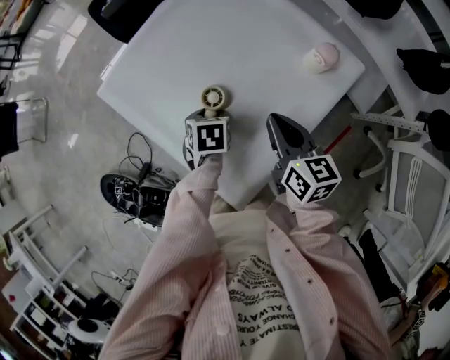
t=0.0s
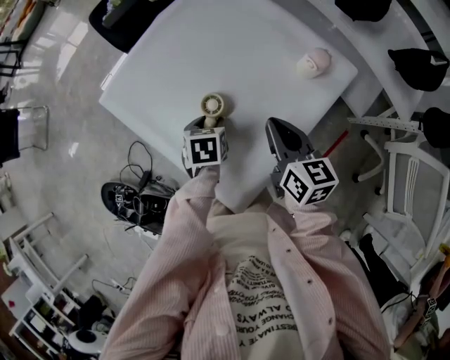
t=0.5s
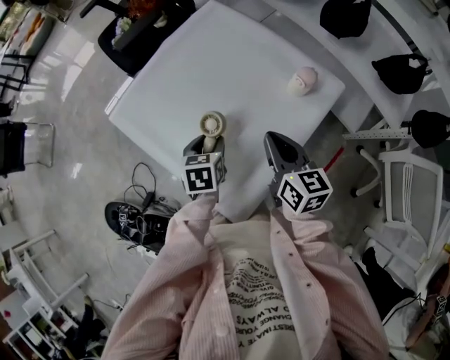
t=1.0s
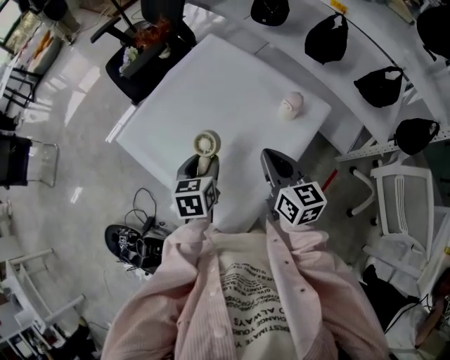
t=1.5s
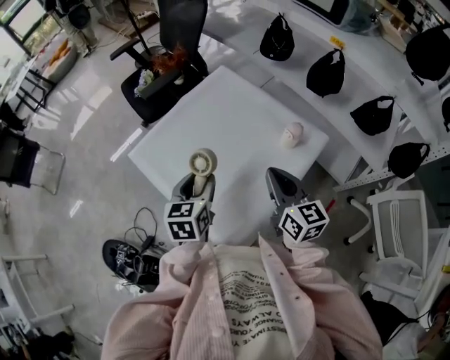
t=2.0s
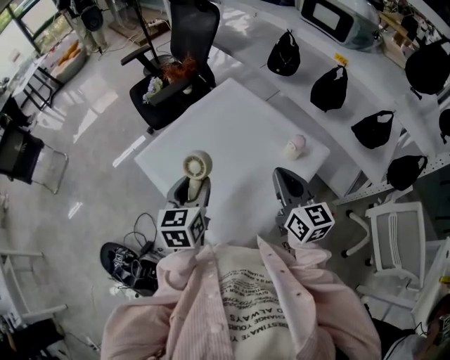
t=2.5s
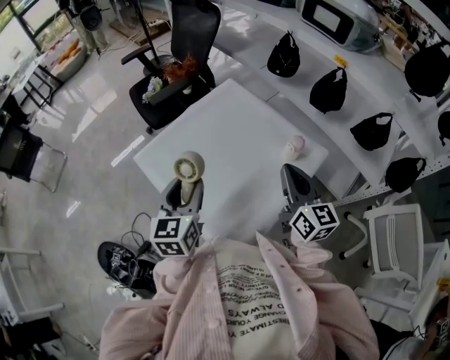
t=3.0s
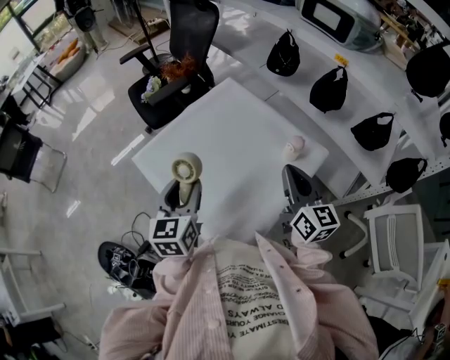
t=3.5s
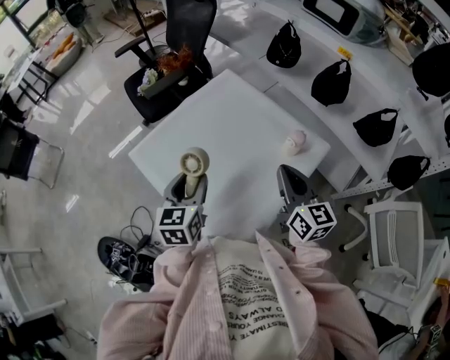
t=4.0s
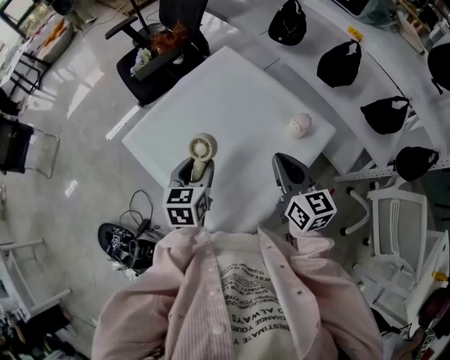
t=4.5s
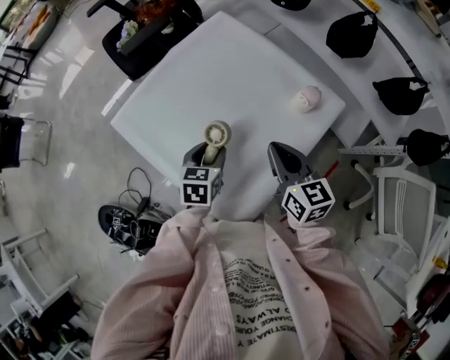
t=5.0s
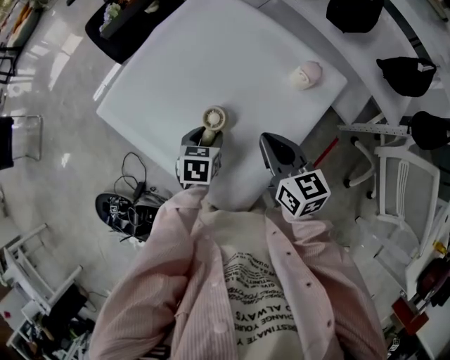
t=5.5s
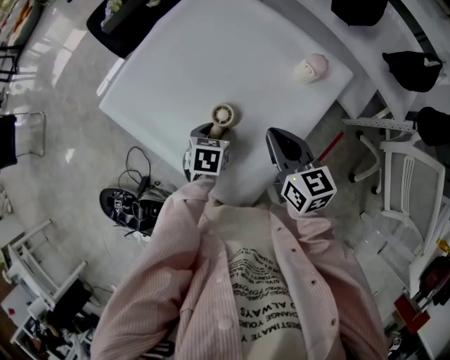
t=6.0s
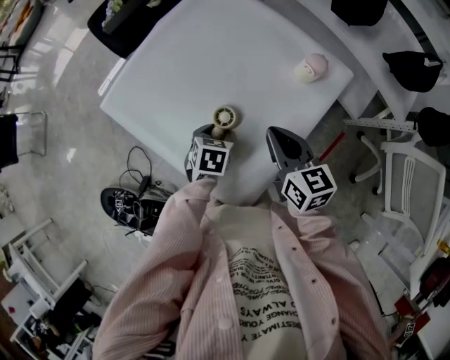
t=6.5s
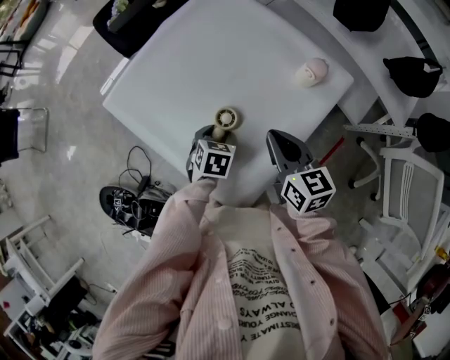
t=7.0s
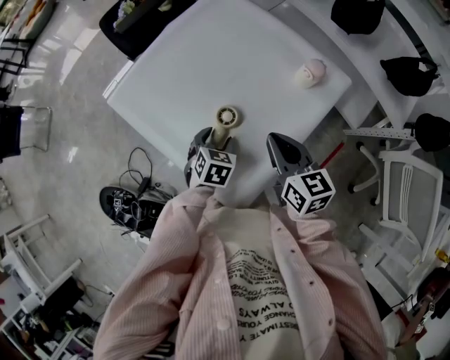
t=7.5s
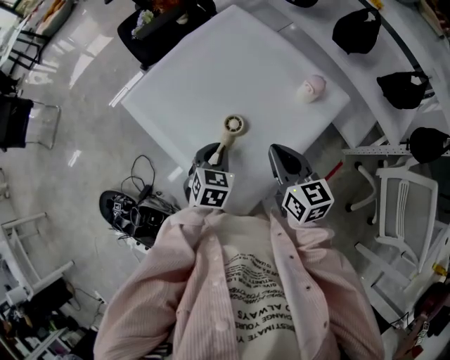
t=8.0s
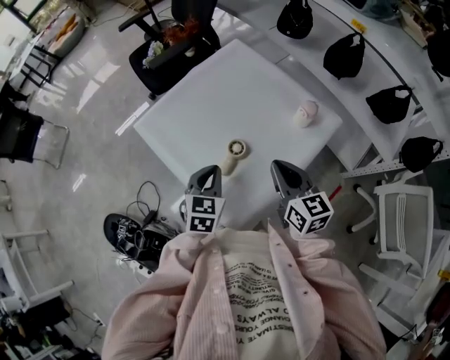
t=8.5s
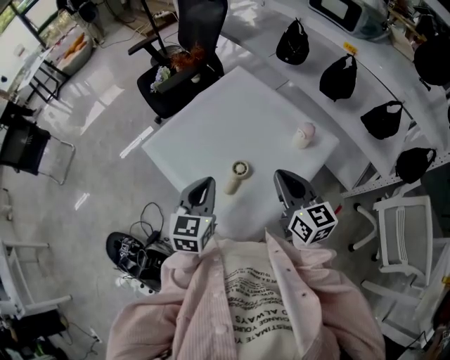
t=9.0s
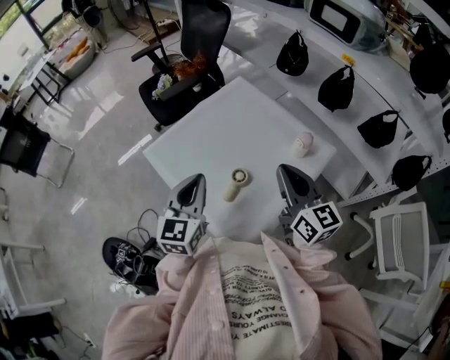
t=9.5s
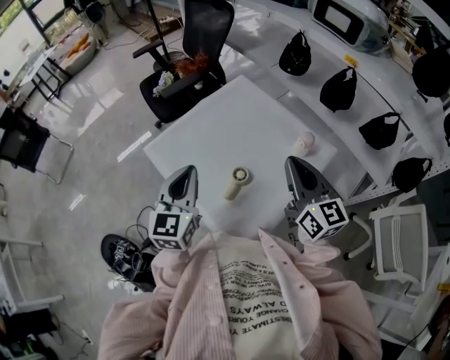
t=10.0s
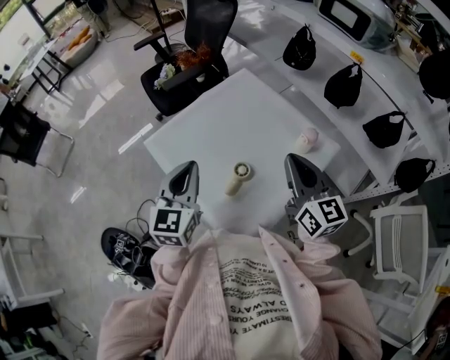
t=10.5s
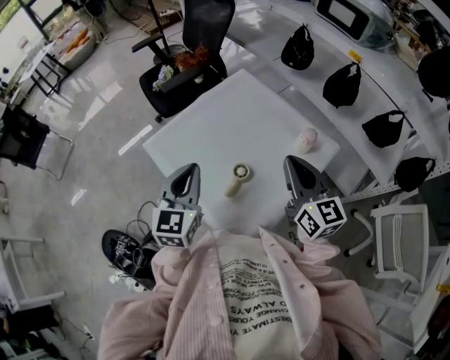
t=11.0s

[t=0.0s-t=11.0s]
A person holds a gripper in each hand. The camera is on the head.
t=0.0s to t=2.0s: The right gripper moves upward, about 15 cm. The left gripper travels upward by about 20 cm, and tips its fingers upward by roughly 40 degrees.
t=2.0s to t=3.5s: The right gripper changes place by some 5 cm, while the left gripper travels upward by roughly 5 cm.
t=3.5s to t=5.5s: The right gripper moves downward, some 15 cm, and rotates some 20 degrees, while the left gripper heads downward, covering roughly 25 cm, and points its fingers some 40 degrees further downward.
t=5.5s to t=7.5s: The grippers stay close to where they were, moving slightly.
t=7.5s to t=9.0s: The left gripper is displaced upward by about 25 cm, points its fingers roughly 40 degrees further upward, and closes its fingers. The right gripper travels upward by roughly 10 cm.
t=9.0s to t=11.0s: The grippers both shift upward by approximately 5 cm.

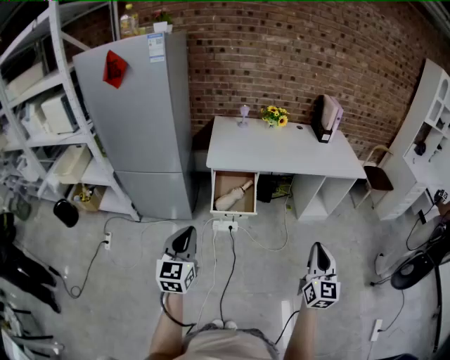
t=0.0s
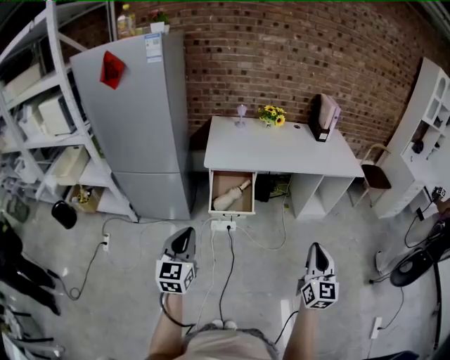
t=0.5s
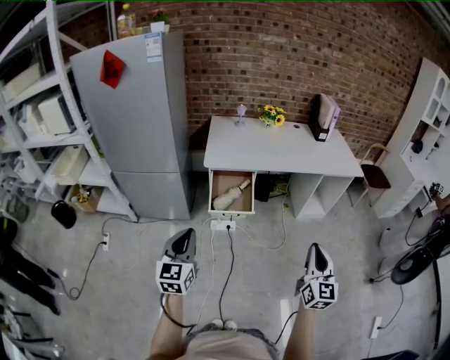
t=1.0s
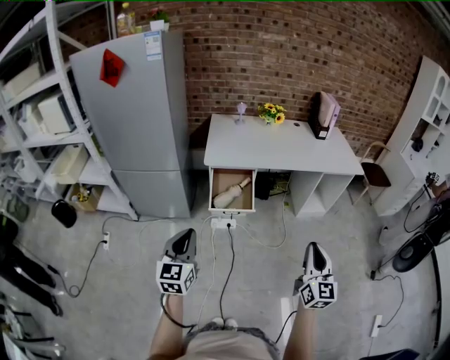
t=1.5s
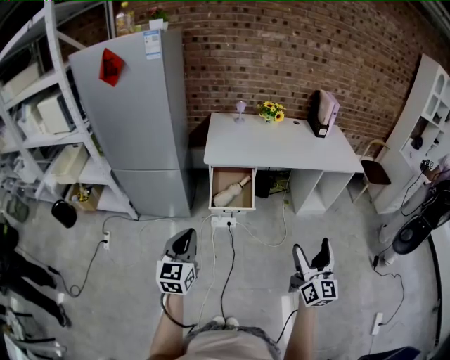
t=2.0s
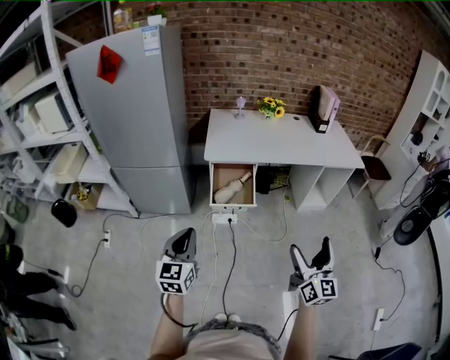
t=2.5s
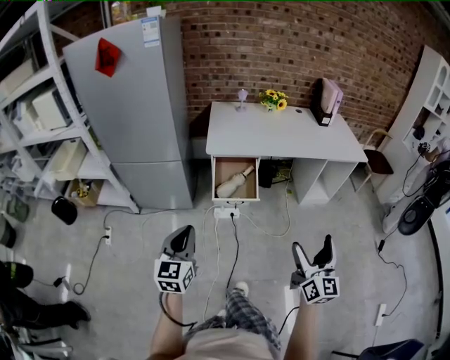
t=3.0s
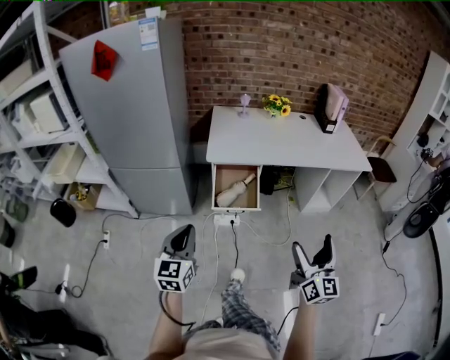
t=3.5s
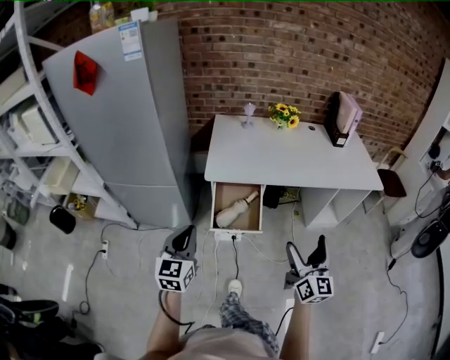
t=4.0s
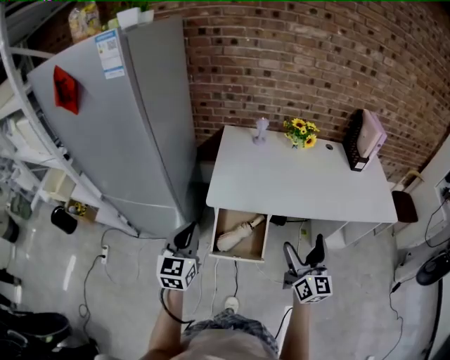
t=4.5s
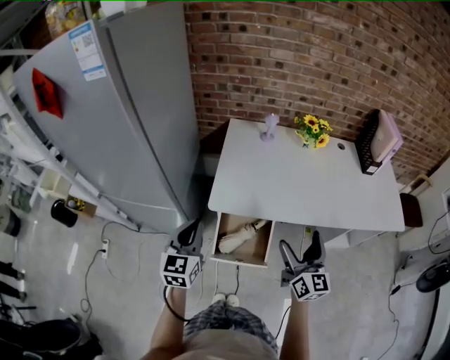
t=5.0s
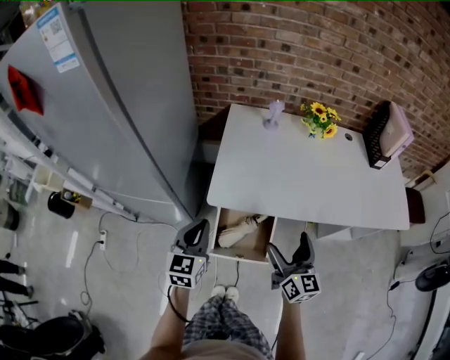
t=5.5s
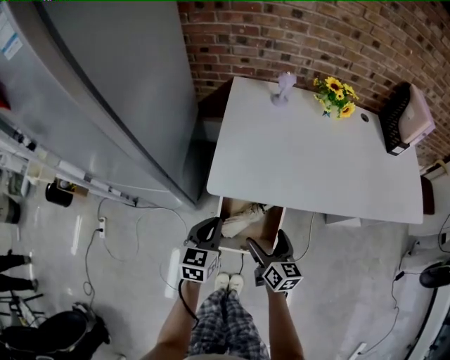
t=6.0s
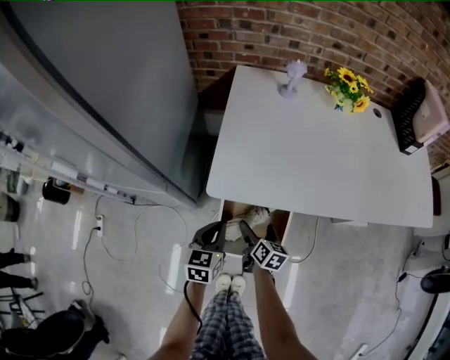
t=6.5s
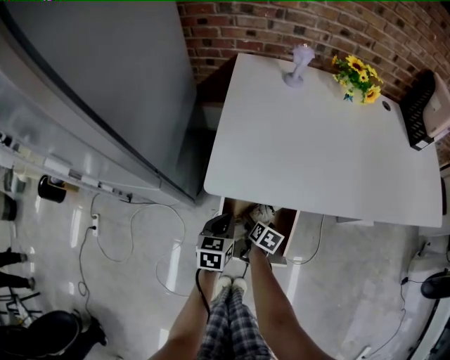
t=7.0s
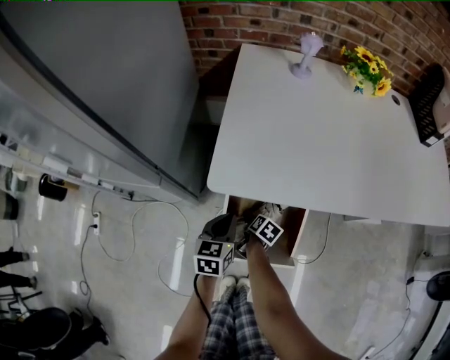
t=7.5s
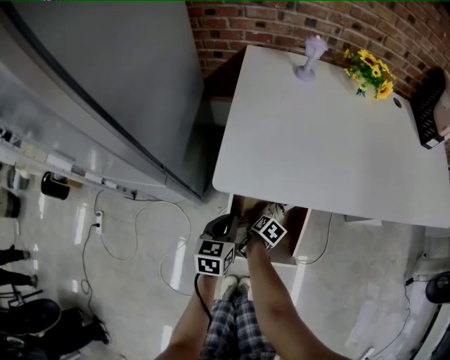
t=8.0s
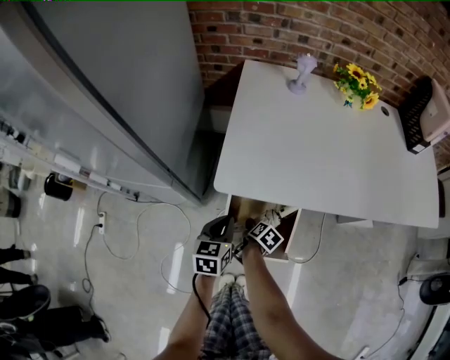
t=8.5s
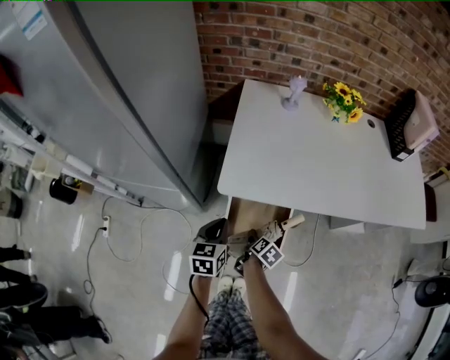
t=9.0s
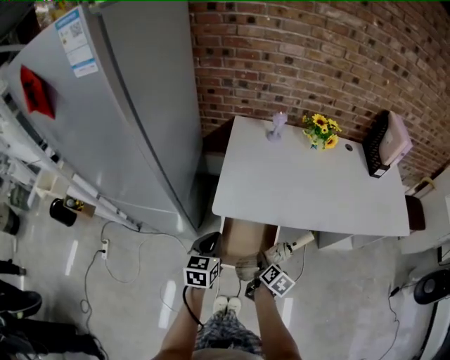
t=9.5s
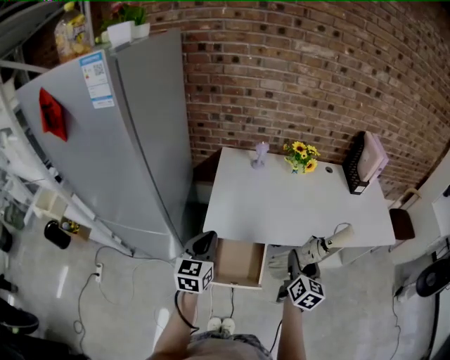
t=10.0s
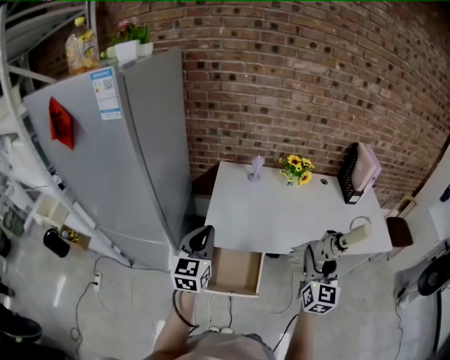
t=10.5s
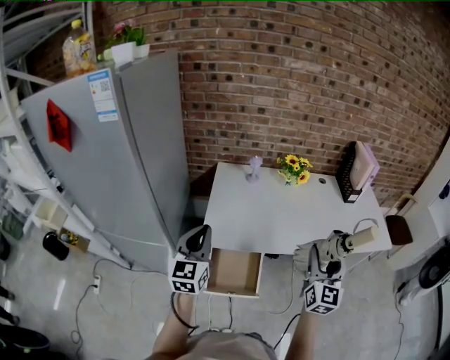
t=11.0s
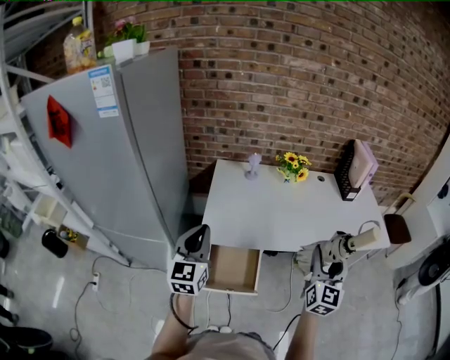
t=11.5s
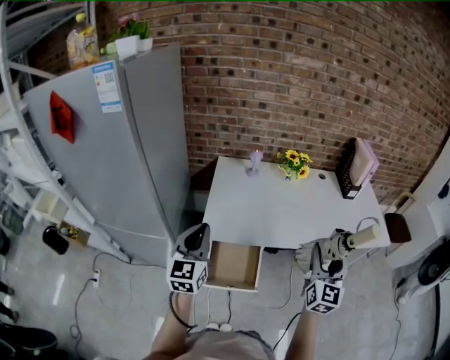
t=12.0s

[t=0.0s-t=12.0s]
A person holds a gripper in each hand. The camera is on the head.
t=0.0s to t=2.0s: The right gripper opens.
t=2.0s to t=4.0s: Both grippers move forward, some 25 cm.
t=4.0s to t=6.0s: The two grippers go roughly 40 cm forward and downward. The left gripper turns by about 20 degrees; the right gripper changes its angle by about 40 degrees.
t=6.0s to t=8.0s: The left gripper moves downward, roughly 20 cm. Meanwhile the right gripper is displaced downward by roughly 35 cm, tilts its fingers about 40 degrees downward, and closes its fingers.
t=8.0s to t=10.0s: Both grippers travel together upward, about 50 cm. The left gripper changes its angle by approximately 20 degrees. Meanwhile the right gripper points its fingers some 50 degrees further upward.
t=10.0s to t=12.0s: The right gripper travels upward and to the right by roughly 15 cm, and changes its angle by approximately 30 degrees. Meanwhile the left gripper heads upward, covering some 10 cm.

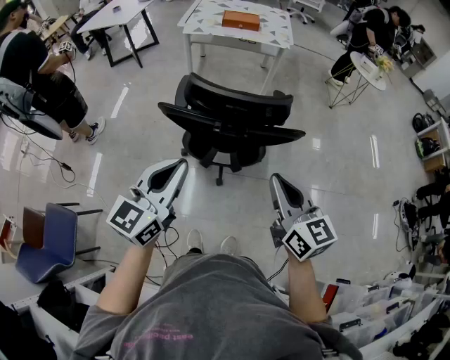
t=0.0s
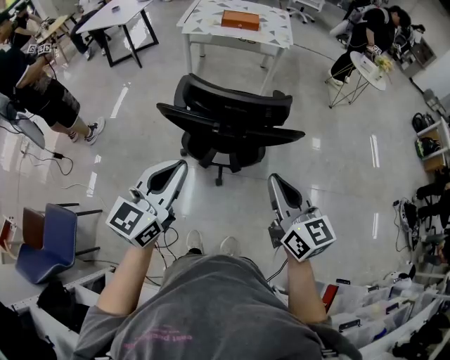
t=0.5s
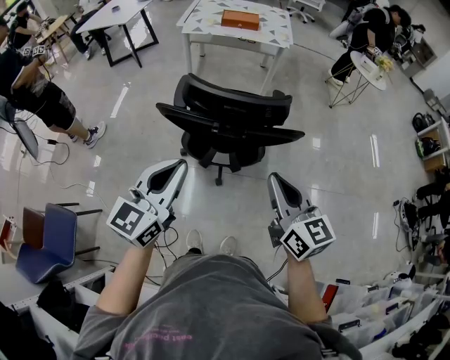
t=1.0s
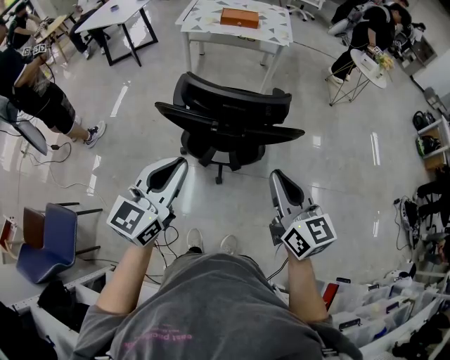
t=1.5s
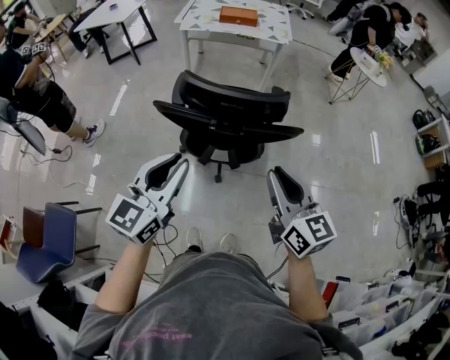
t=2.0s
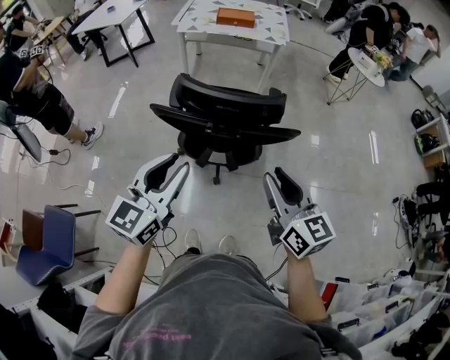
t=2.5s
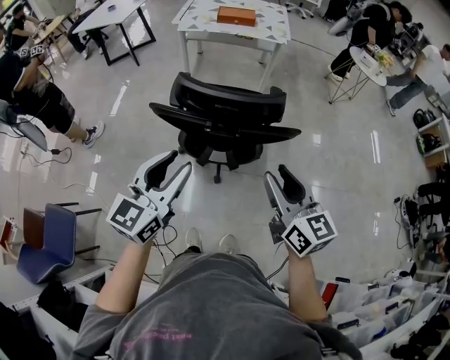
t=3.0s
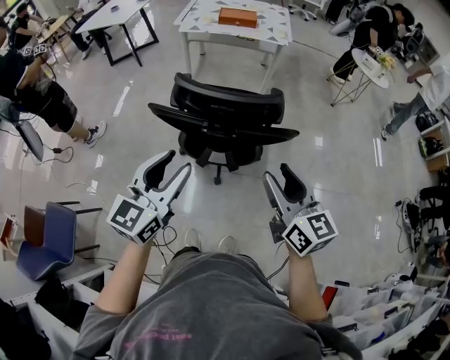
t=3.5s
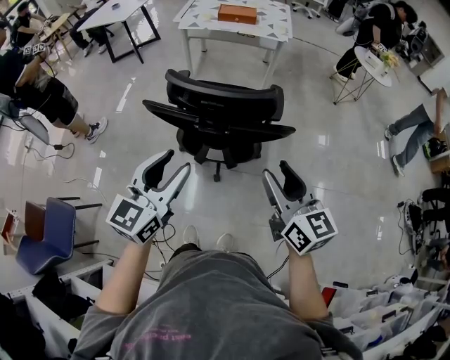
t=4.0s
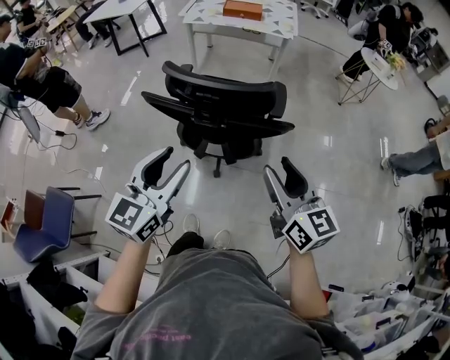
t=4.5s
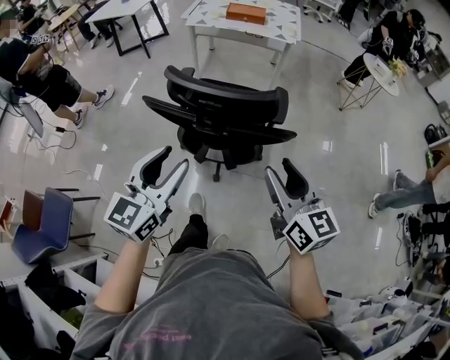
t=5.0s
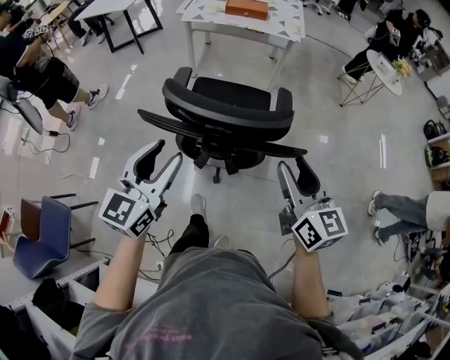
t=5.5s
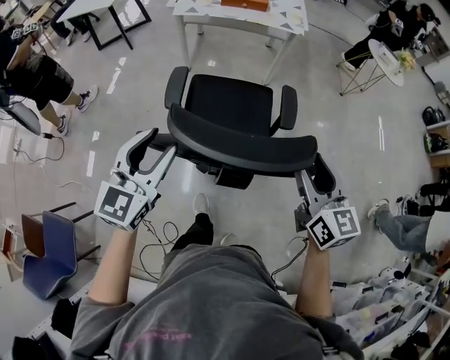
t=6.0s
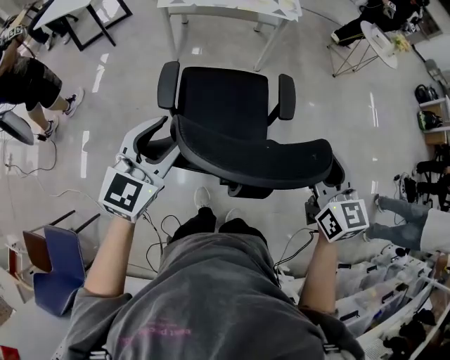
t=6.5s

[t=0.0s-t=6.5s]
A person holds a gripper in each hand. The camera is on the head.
t=0.0s to t=2.0s: Both grippers stay put.
t=2.0s to t=4.5s: The two grippers go approximately 5 cm to the right. The left gripper opens up, while the right gripper opens.
t=4.5s to t=6.5s: The right gripper shifts some 20 cm forward, and turns by some 20 degrees, while the left gripper heads forward and to the left, covering about 30 cm.
